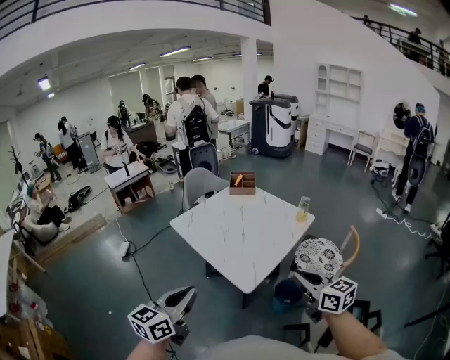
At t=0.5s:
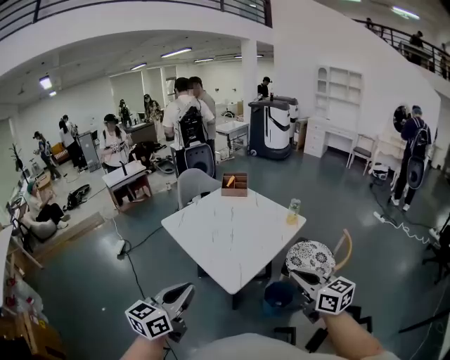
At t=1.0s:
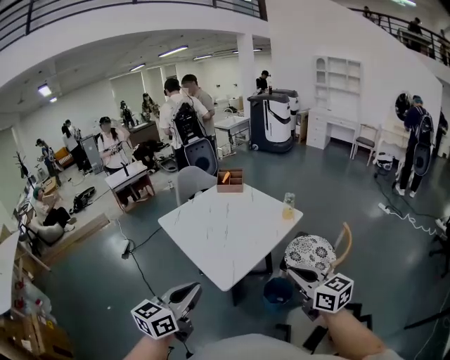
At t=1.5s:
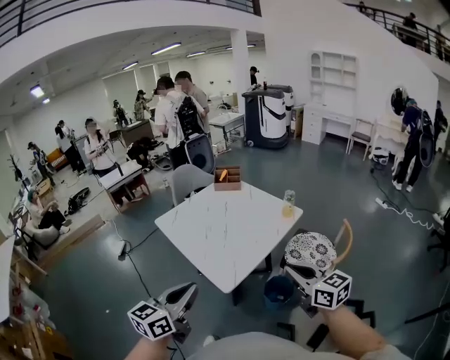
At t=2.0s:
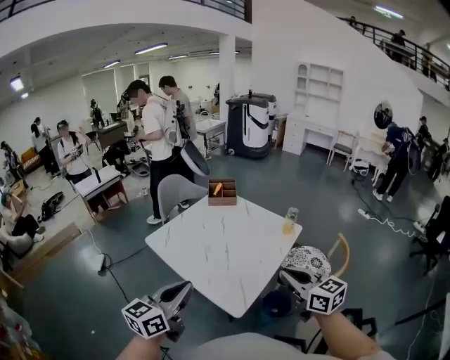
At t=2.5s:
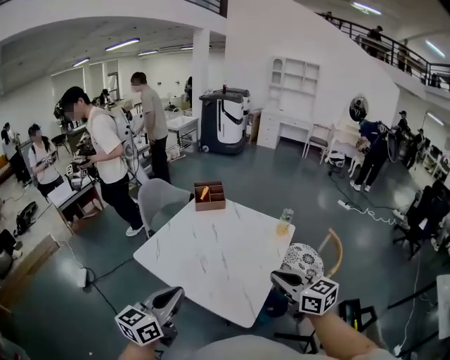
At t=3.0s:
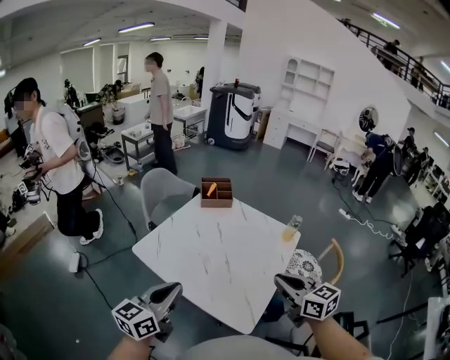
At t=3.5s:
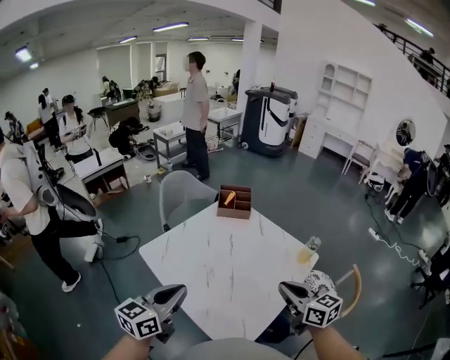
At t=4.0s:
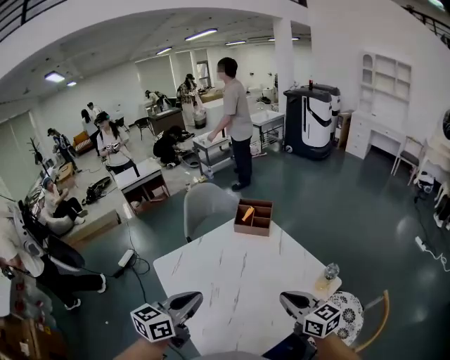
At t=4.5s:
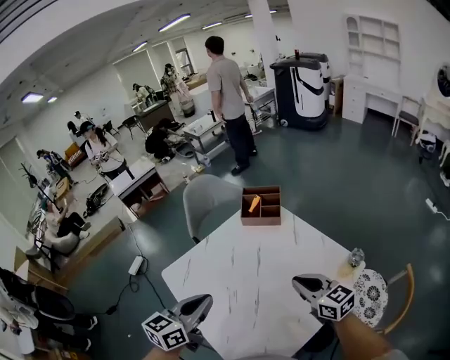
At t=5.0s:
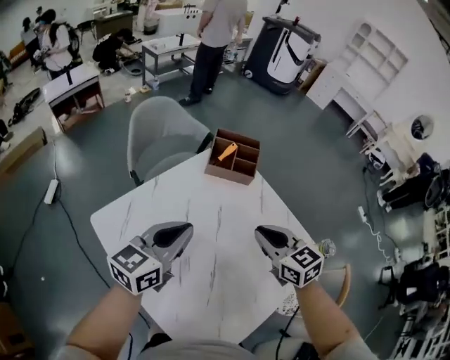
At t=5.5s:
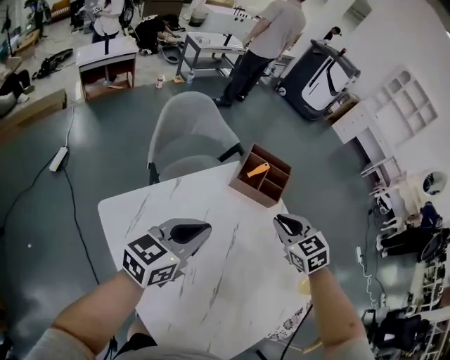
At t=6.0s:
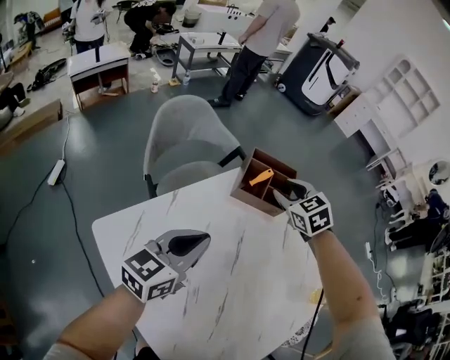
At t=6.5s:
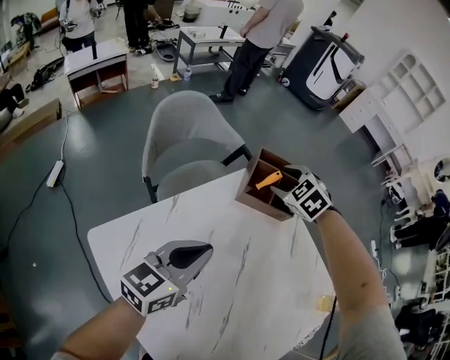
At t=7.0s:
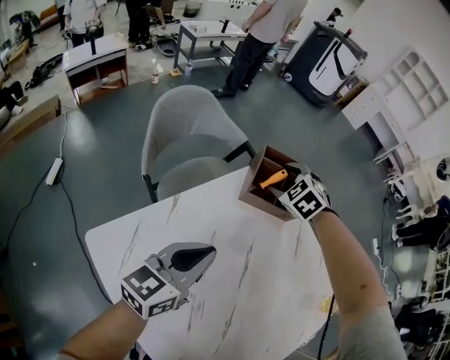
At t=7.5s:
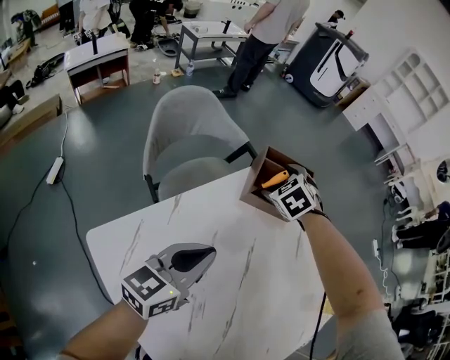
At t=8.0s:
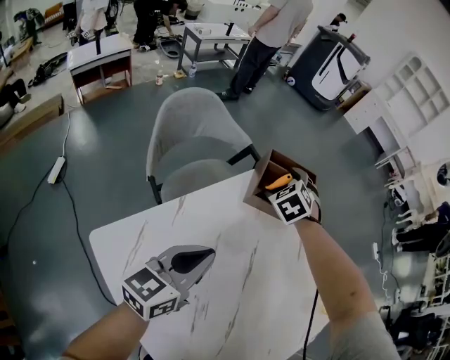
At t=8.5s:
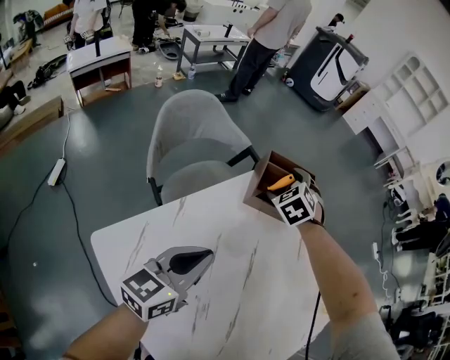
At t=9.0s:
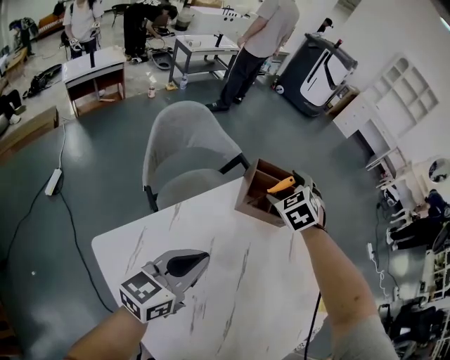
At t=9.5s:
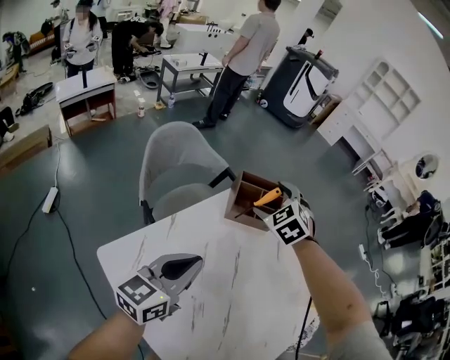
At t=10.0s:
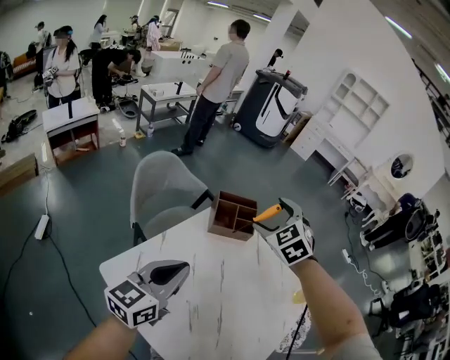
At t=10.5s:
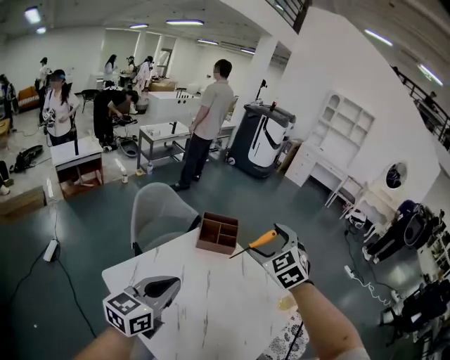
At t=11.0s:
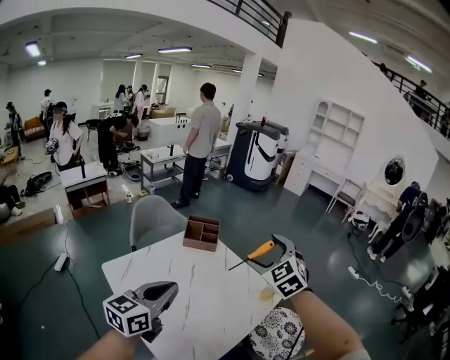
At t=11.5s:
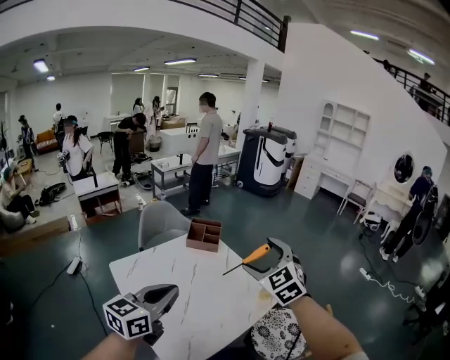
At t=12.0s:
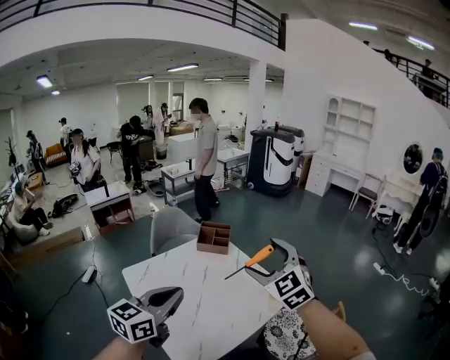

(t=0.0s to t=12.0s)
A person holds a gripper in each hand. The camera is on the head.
t=0.0s - t=2.0s: Both grippers travel together forward, about 15 cm.
t=2.0s - t=4.0s: The grippers both shift forward by some 30 cm.
t=4.0s - t=6.0s: The left gripper heads forward and downward, covering roughly 30 cm, while the right gripper moves forward, about 40 cm, and angles its fingers downward, by roughly 30 degrees.
t=6.0s - t=8.0s: The right gripper shifts approximately 10 cm downward and forward, turns by roughly 20 degrees, and opens.
t=8.0s - t=10.0s: The left gripper shifts roughly 15 cm upward and backward. Meanwhile the right gripper travels upward and backward by some 30 cm.
t=10.0s - t=12.0s: The grippers both shift backward, to the right and upward by about 40 cm. The right gripper swivels about 30 degrees.

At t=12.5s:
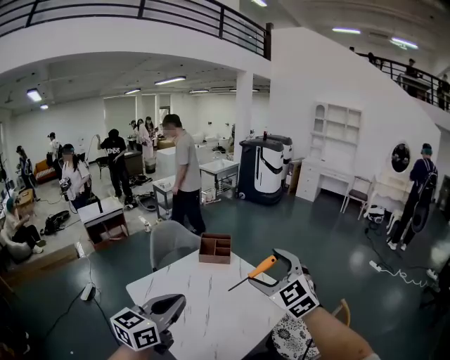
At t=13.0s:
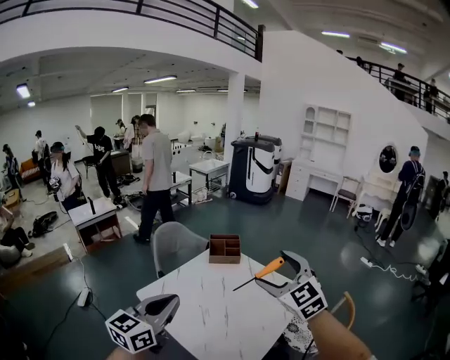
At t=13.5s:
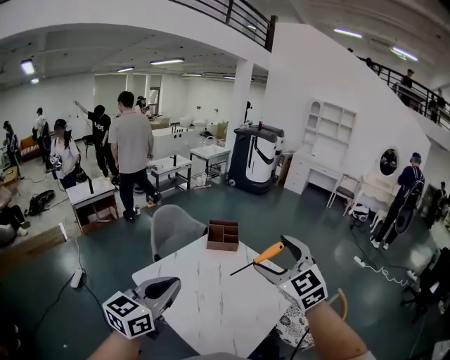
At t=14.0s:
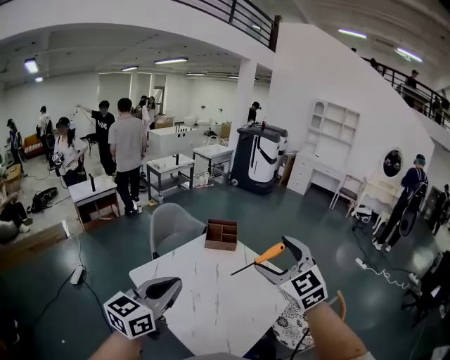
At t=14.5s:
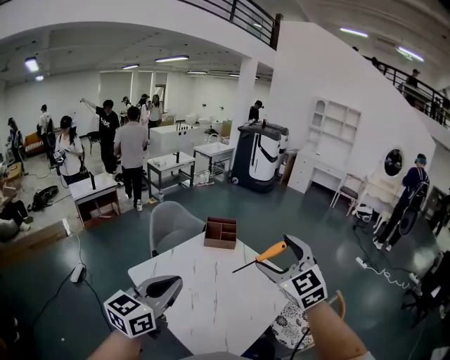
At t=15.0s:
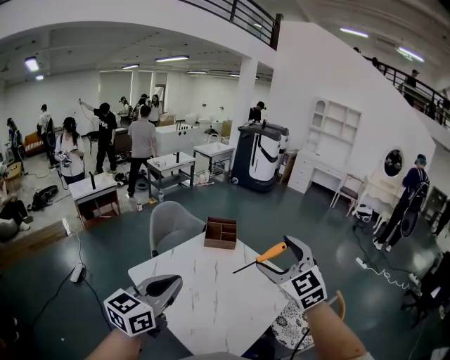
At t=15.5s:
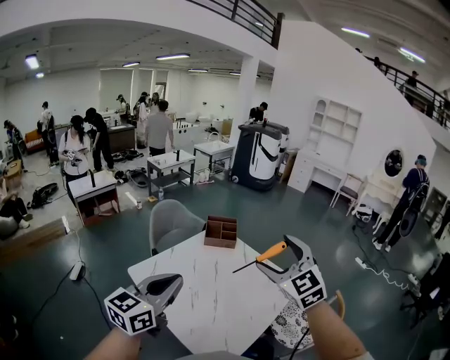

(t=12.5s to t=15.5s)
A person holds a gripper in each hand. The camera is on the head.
t=12.5s - t=14.0s: The grippers both shift to the left by approximately 10 cm.
t=14.0s - t=15.5s: The grippers make only small movements.

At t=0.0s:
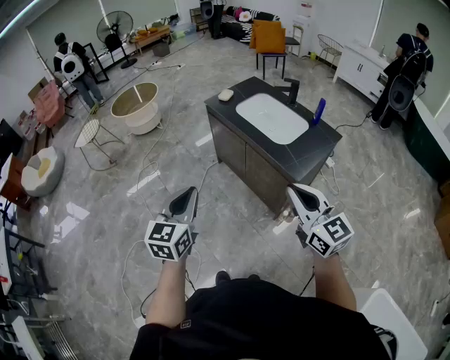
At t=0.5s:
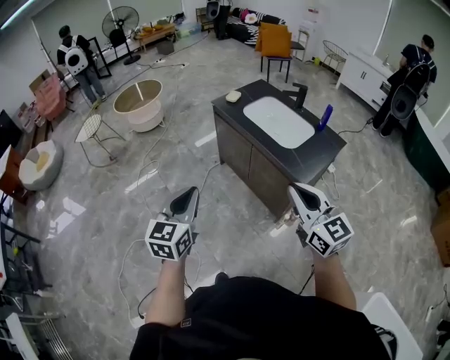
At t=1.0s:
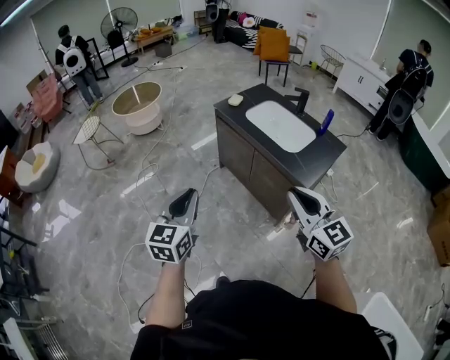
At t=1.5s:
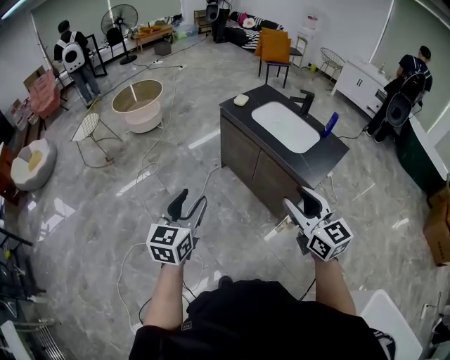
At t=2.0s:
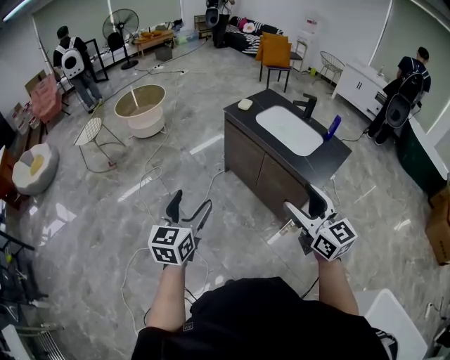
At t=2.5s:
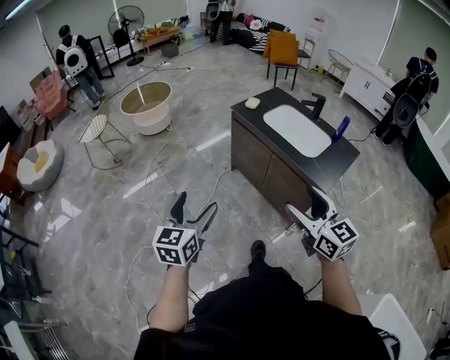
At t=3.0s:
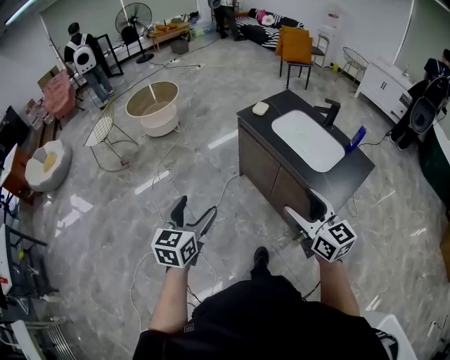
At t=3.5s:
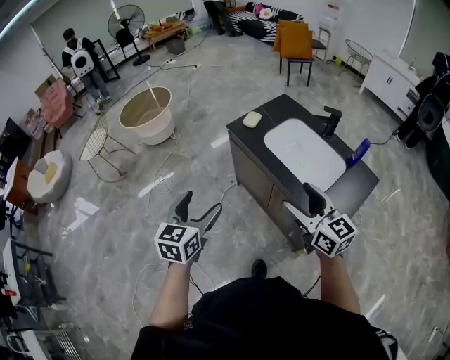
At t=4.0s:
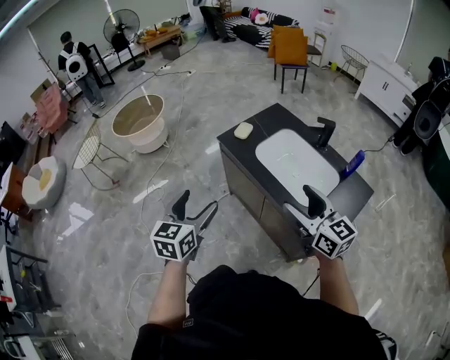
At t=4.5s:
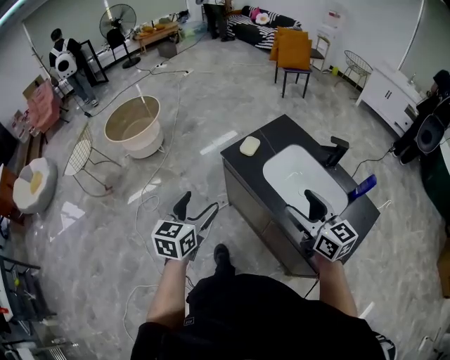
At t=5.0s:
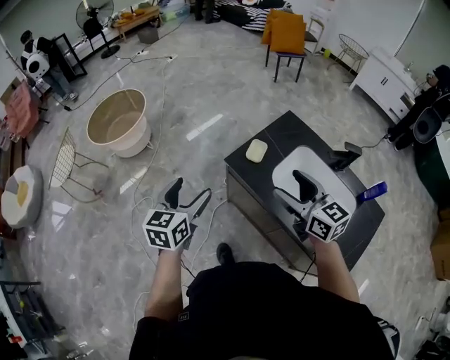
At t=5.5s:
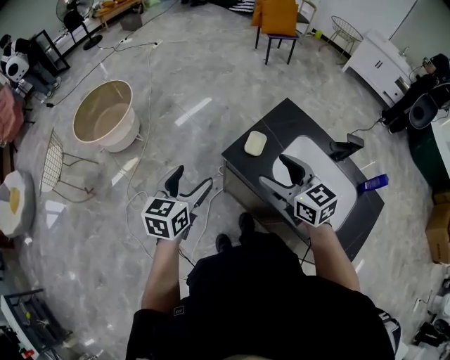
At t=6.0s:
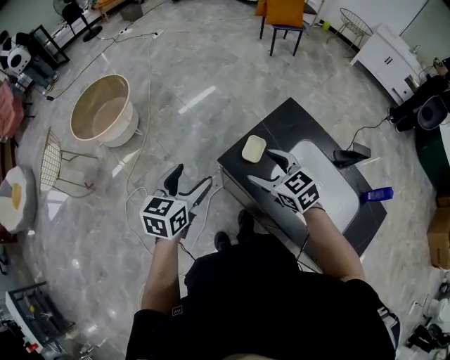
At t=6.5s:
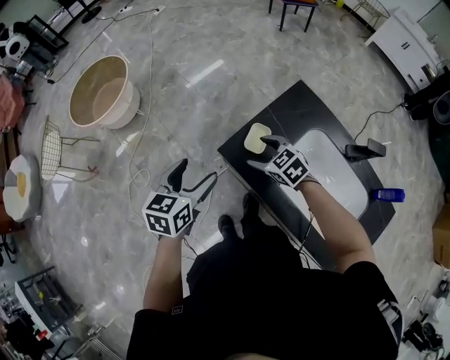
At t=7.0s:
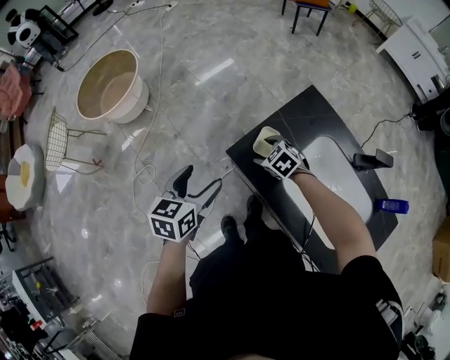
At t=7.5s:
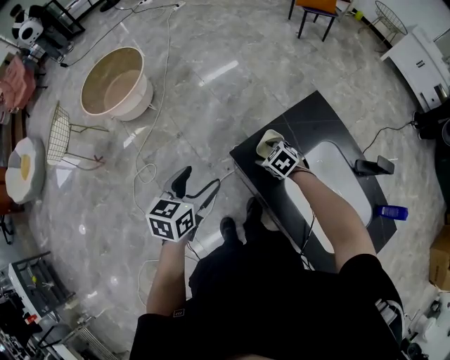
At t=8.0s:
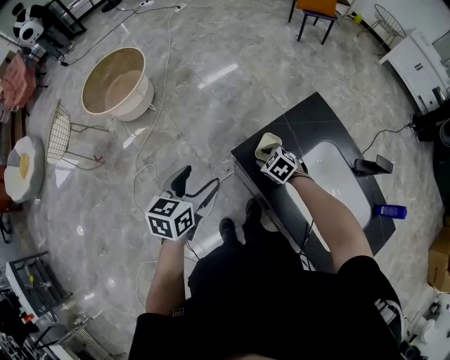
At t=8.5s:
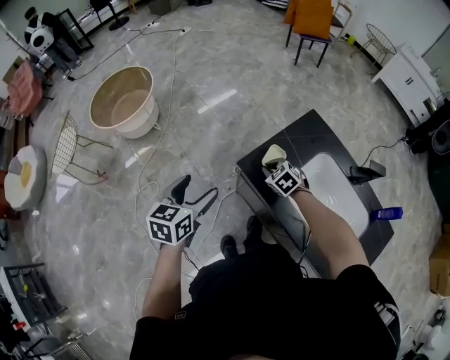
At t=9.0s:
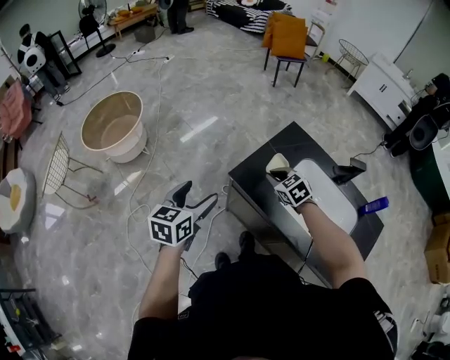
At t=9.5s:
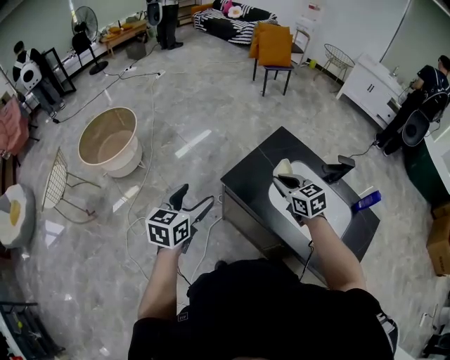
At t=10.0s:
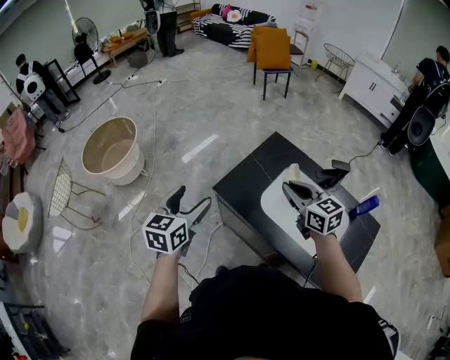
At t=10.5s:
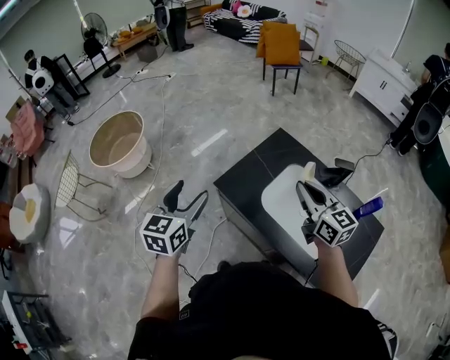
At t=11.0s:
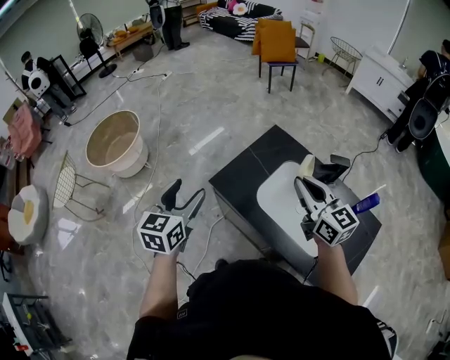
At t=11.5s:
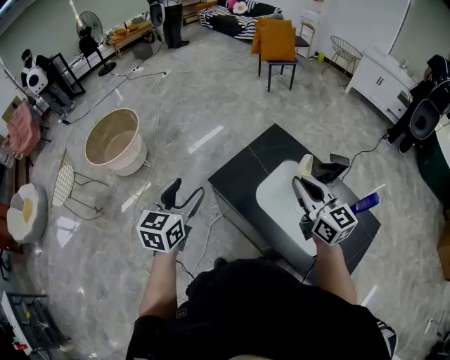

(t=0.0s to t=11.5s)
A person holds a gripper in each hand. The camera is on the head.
t=0.0s - t=2.0s: Both grippers travel together to the left, approximately 15 cm. The right gripper opens up. The left gripper opens.
t=2.0s - t=4.0s: The grippers both shift forward and to the right by roughly 35 cm.
t=4.0s - t=6.0s: The two grippers go about 40 cm forward. The right gripper angles its fingers downward, by approximately 30 degrees.
t=6.0s - t=7.5s: The right gripper moves downward, some 20 cm, and rotates some 30 degrees. The left gripper moves downward, some 5 cm.
t=7.5s - t=9.5s: The left gripper moves upward and backward, about 10 cm. The right gripper shifts approximately 25 cm upward and backward, tips its fingers upward by about 30 degrees, and closes up.
t=9.5s - t=11.5s: The left gripper heads to the right and upward, covering some 10 cm; the right gripper travels upward, to the right and backward by about 15 cm, and changes its angle by roughly 30 degrees.
